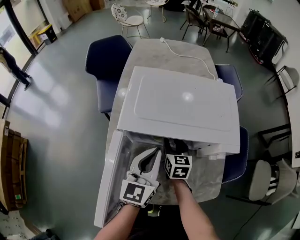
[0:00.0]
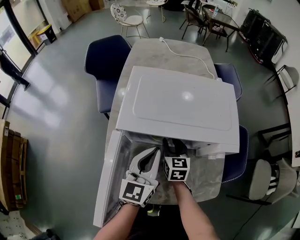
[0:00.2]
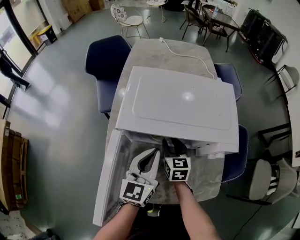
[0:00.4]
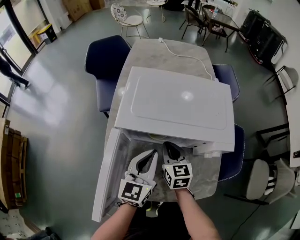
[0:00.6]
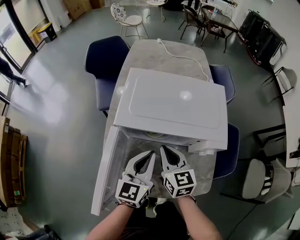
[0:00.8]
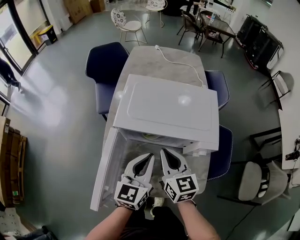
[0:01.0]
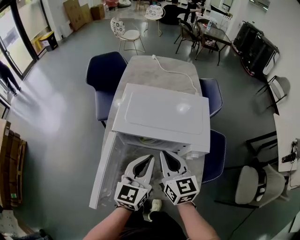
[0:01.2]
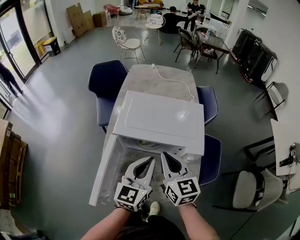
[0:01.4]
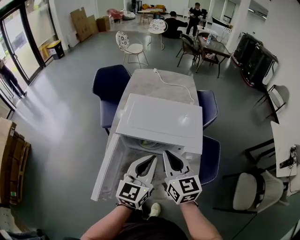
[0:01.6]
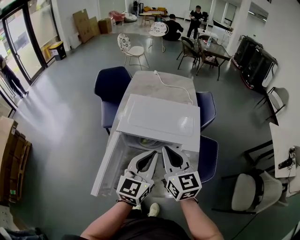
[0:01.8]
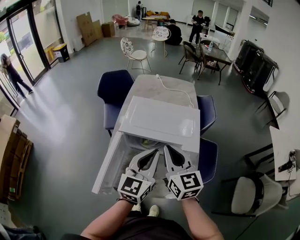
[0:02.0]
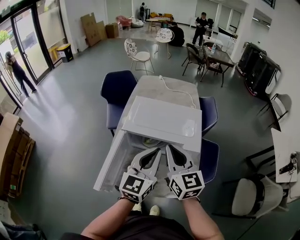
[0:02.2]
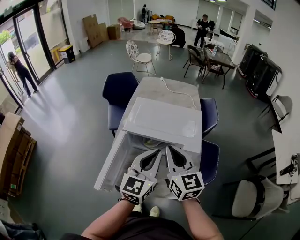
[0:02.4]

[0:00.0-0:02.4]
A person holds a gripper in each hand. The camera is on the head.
0:00.0 to 0:01.2: The left gripper shifts about 10 cm upward.
0:01.2 to 0:02.4: The left gripper heads upward, covering some 10 cm.

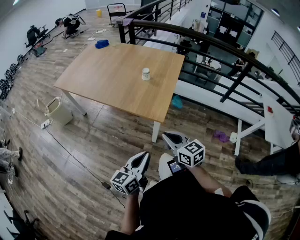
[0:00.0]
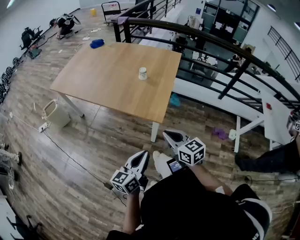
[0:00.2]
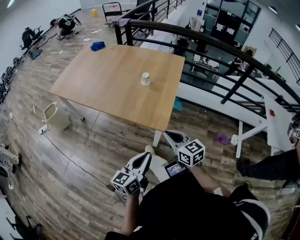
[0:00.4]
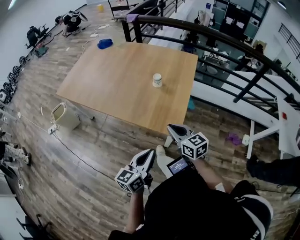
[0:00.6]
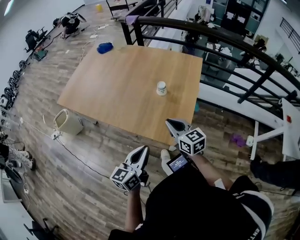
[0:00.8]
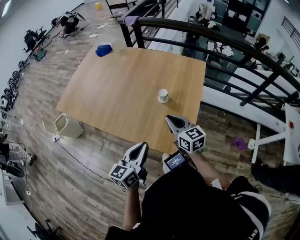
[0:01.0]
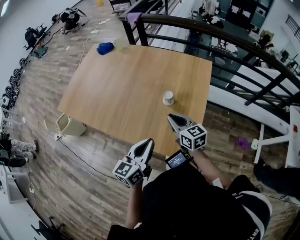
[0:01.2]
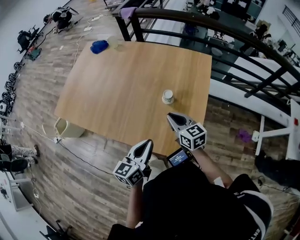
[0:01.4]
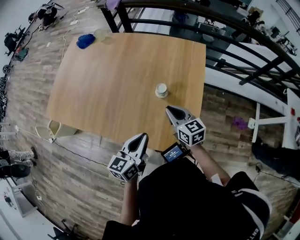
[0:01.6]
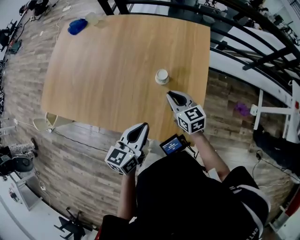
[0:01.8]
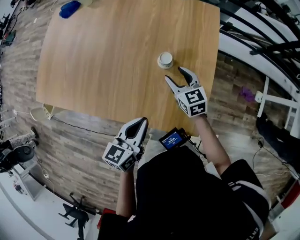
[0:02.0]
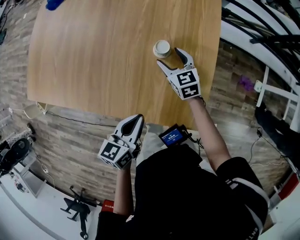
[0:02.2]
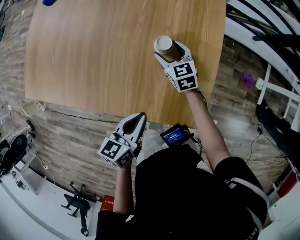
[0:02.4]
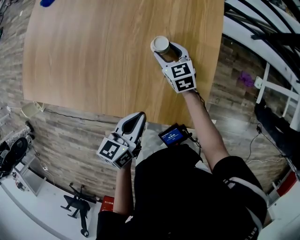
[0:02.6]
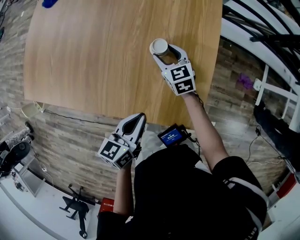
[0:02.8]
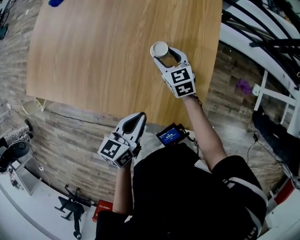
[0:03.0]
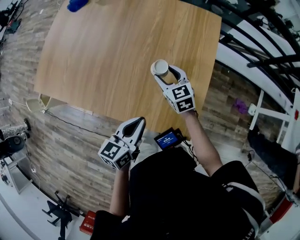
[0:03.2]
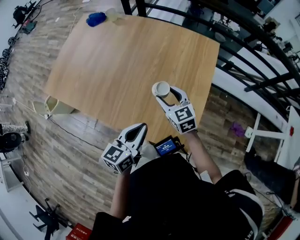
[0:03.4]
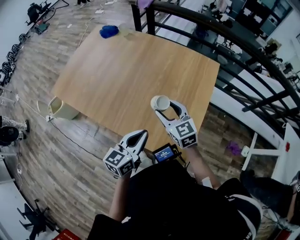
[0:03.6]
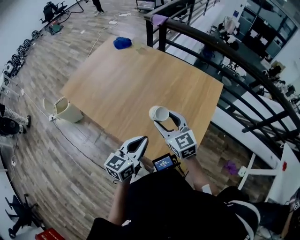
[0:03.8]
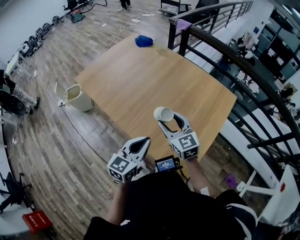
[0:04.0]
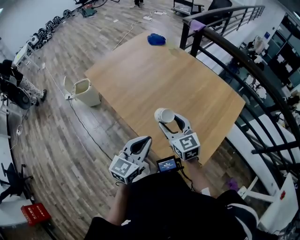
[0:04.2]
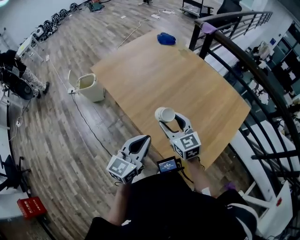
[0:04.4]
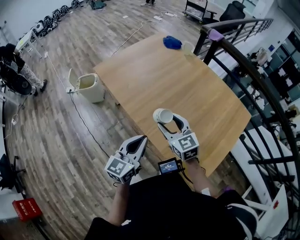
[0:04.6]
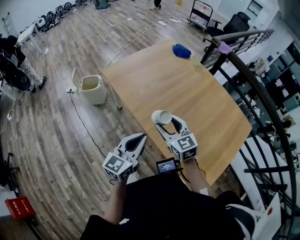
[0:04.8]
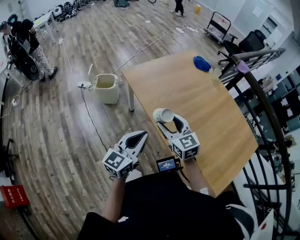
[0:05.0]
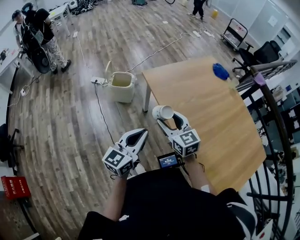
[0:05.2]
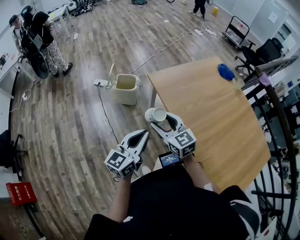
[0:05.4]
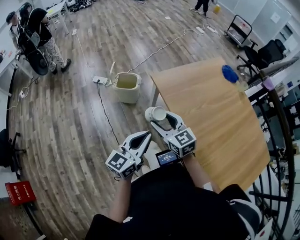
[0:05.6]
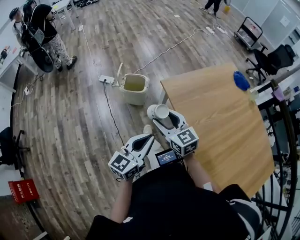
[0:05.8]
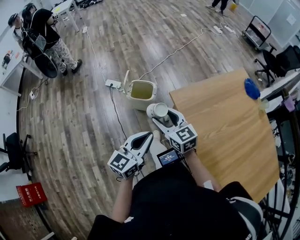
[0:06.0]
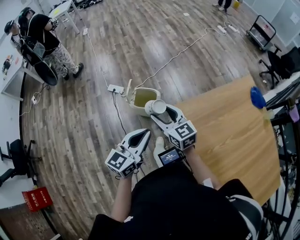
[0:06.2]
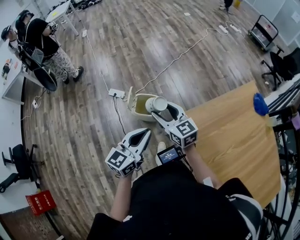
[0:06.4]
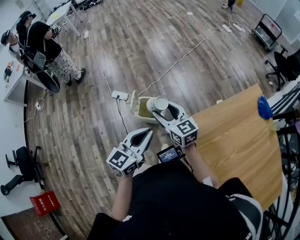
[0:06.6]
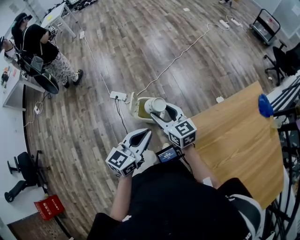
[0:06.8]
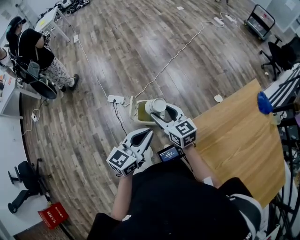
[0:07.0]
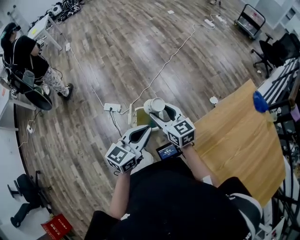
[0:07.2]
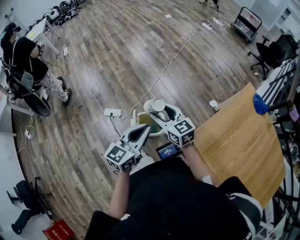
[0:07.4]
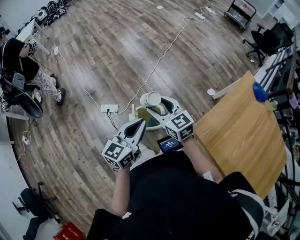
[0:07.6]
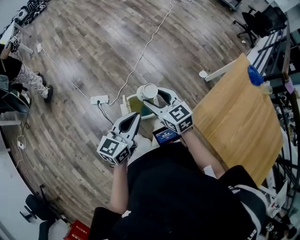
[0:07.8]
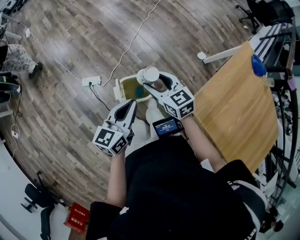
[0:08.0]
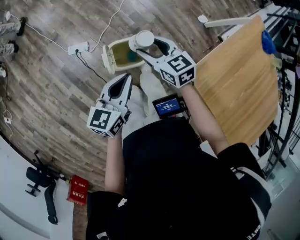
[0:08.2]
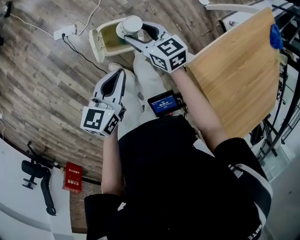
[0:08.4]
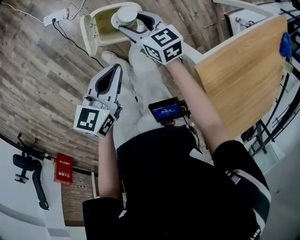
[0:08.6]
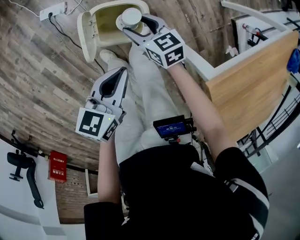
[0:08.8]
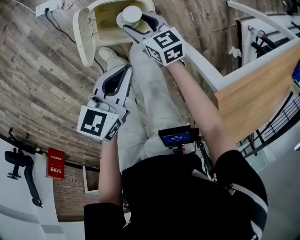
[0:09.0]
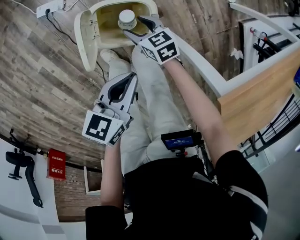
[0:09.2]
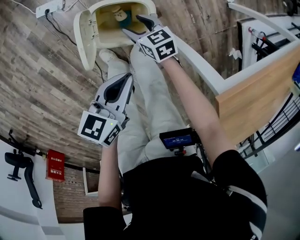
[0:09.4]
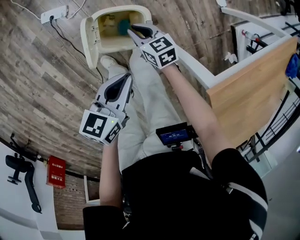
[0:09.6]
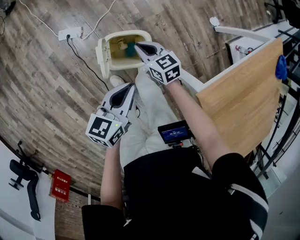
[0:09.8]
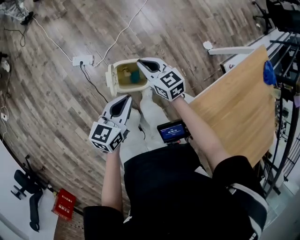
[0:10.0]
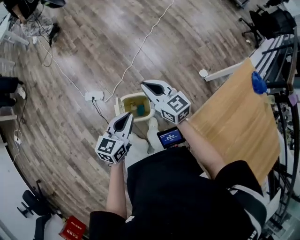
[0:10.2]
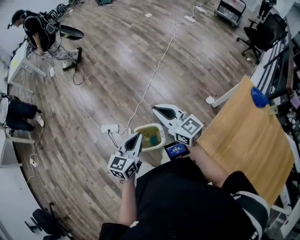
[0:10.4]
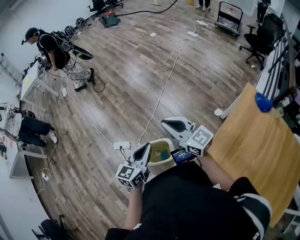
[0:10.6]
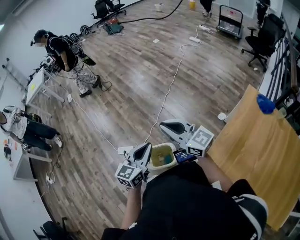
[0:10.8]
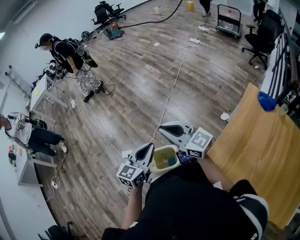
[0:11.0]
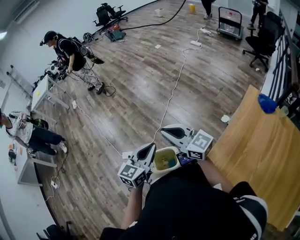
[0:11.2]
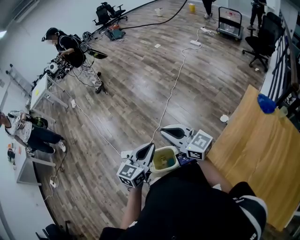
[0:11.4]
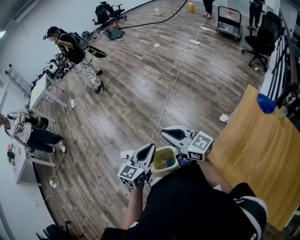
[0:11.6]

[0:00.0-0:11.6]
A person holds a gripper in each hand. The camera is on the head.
0:00.0 to 0:01.4: The two grippers travel together, forward, roughly 40 cm.
0:01.4 to 0:02.8: The right gripper is displaced downward and forward by approximately 25 cm, turns by roughly 20 degrees, and opens; the left gripper goes roughly 10 cm downward, and changes its angle by roughly 20 degrees.
0:02.8 to 0:04.4: The left gripper moves upward, approximately 15 cm, and swivels some 50 degrees. Meanwhile the right gripper changes place by about 35 cm, and turns by some 40 degrees.
0:04.4 to 0:05.8: Both grippers are carried to the left and forward, roughly 60 cm. The right gripper swivels roughly 20 degrees.
0:05.8 to 0:07.2: Both grippers are carried forward, roughly 40 cm.
0:07.2 to 0:08.8: The two grippers go some 35 cm downward. The right gripper swivels about 30 degrees. Meanwhile the left gripper turns by some 40 degrees.
0:08.8 to 0:10.2: The left gripper is displaced upward by approximately 15 cm, and changes its angle by roughly 20 degrees. Meanwhile the right gripper moves upward, roughly 30 cm, turns by approximately 30 degrees, and closes.
0:10.2 to 0:11.6: Both grippers move upward and to the right, approximately 15 cm. The right gripper changes its angle by roughly 20 degrees.

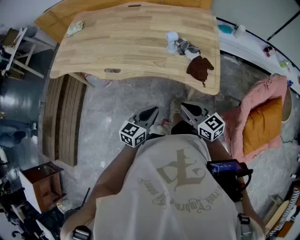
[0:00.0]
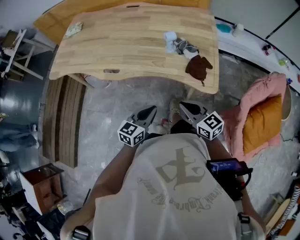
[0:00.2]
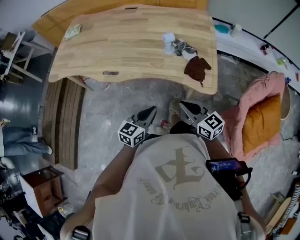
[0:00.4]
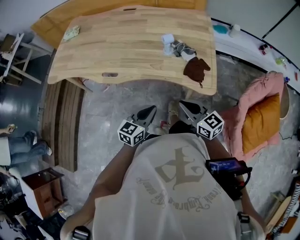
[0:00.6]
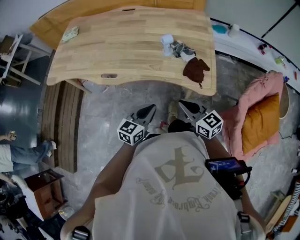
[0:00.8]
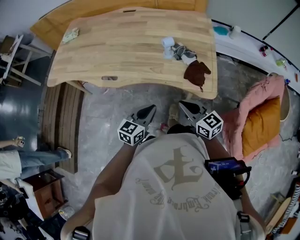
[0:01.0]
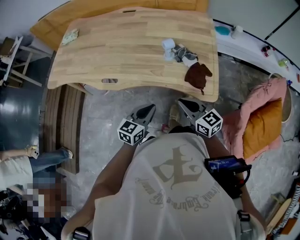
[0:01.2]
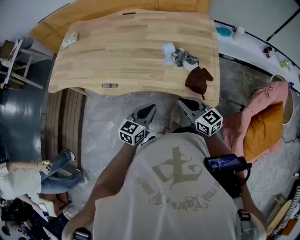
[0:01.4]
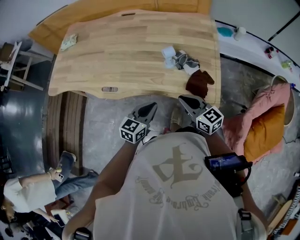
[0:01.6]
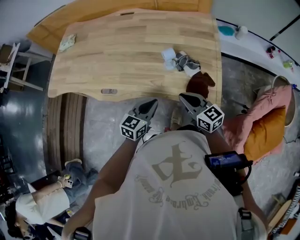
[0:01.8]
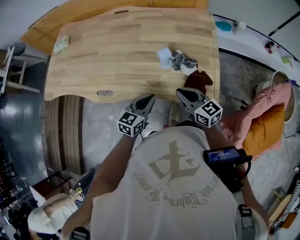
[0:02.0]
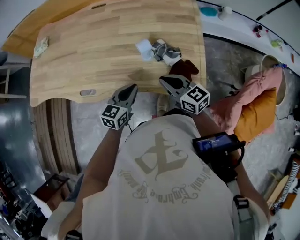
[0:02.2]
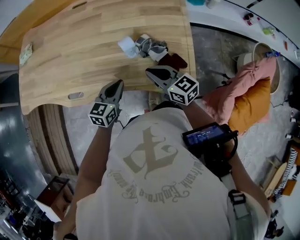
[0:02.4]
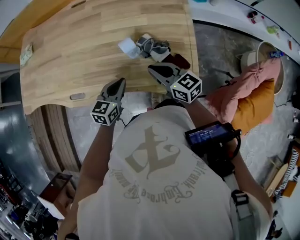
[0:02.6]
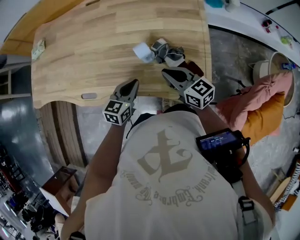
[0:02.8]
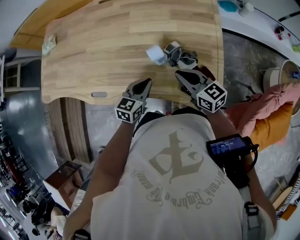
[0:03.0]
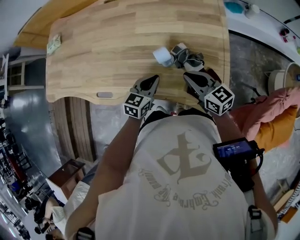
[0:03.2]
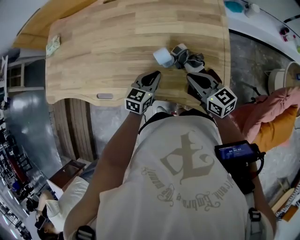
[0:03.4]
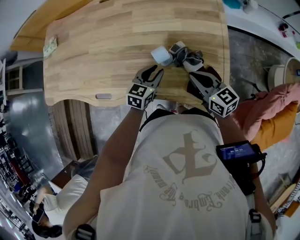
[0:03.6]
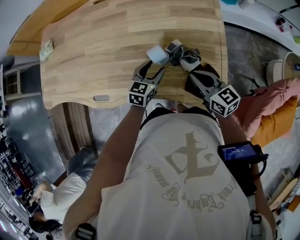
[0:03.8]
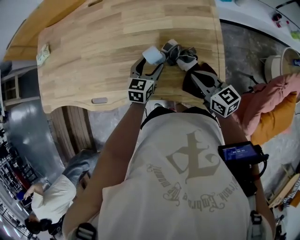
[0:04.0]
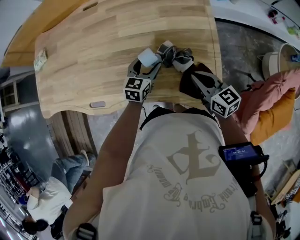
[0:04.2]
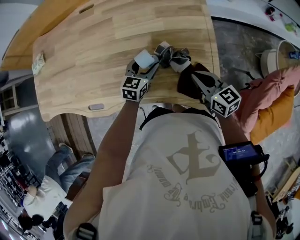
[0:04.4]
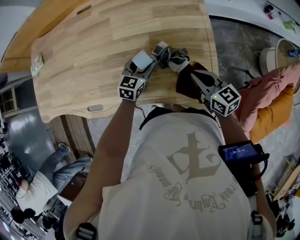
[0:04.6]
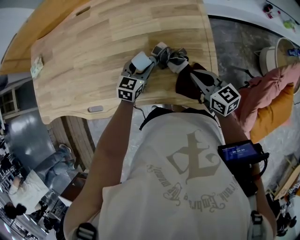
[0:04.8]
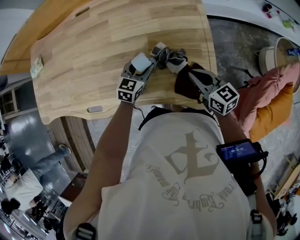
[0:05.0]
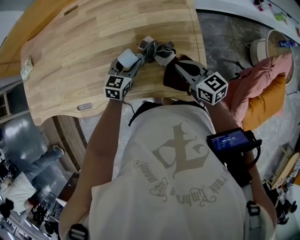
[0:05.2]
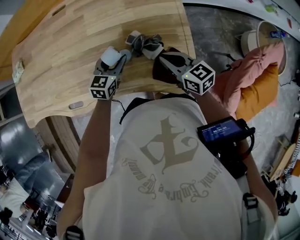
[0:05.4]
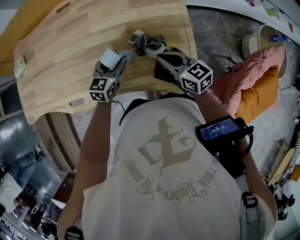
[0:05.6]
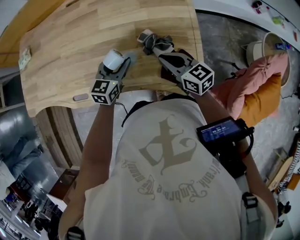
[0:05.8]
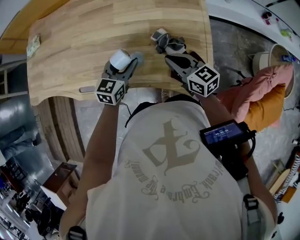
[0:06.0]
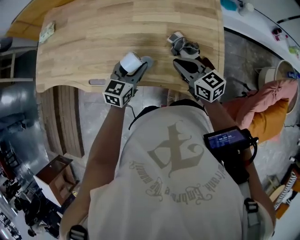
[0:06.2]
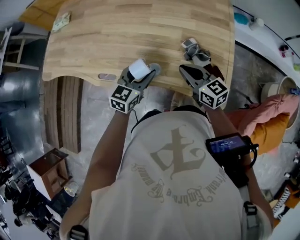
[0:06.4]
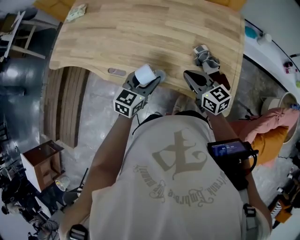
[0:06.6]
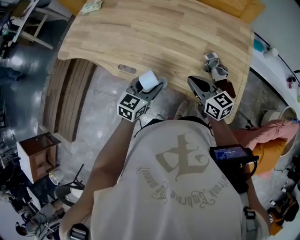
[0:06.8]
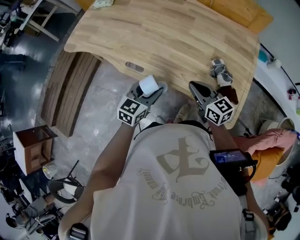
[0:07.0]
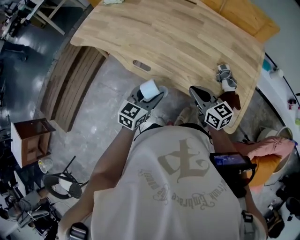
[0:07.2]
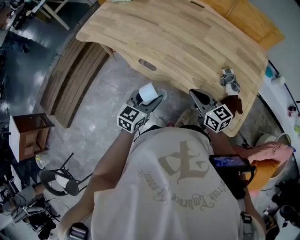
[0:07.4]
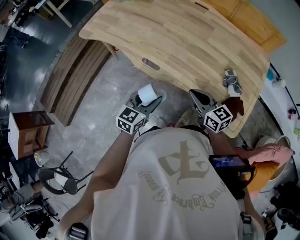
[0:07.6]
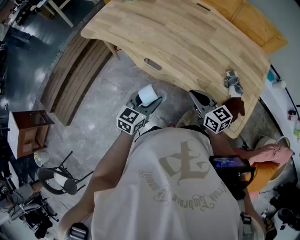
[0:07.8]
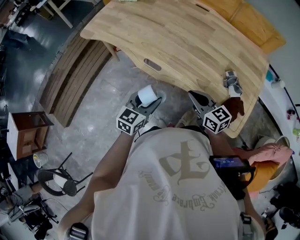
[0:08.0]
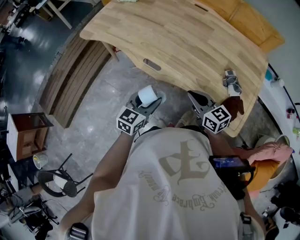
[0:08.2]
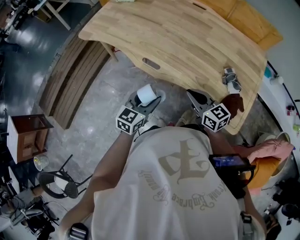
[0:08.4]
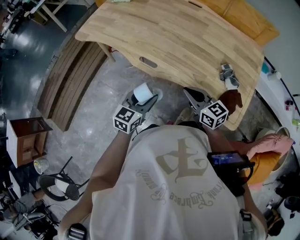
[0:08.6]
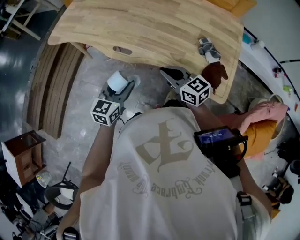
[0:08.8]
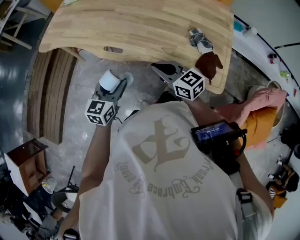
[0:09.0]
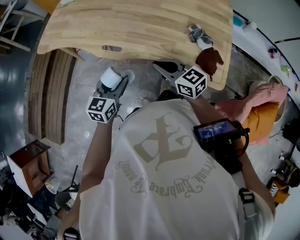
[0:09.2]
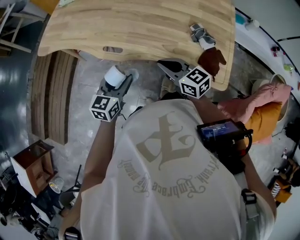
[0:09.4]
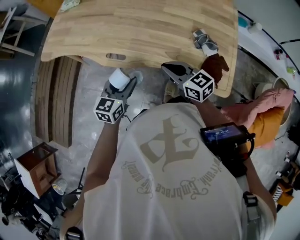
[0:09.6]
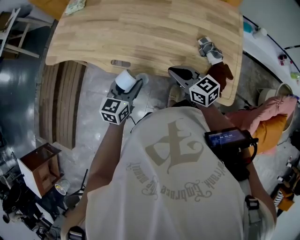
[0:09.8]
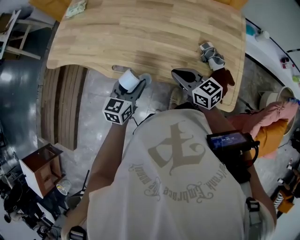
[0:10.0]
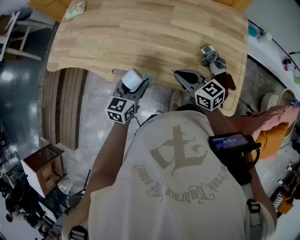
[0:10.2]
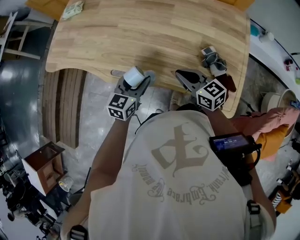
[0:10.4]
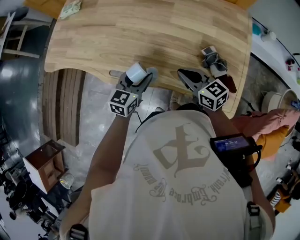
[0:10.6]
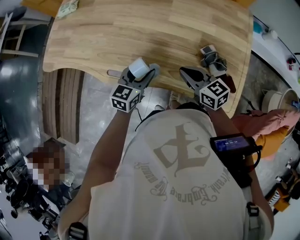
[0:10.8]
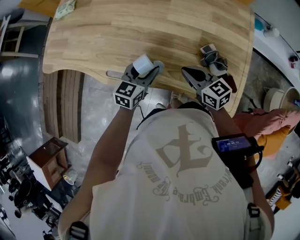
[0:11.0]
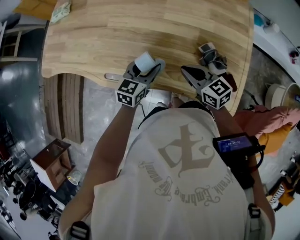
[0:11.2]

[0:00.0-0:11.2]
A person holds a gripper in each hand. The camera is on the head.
0:00.0 to 0:01.6: The grippers both shift forward by about 15 cm.
0:01.6 to 0:03.2: Both grippers travel together forward, approximately 15 cm.
0:03.2 to 0:04.8: The right gripper travels to the right by approximately 10 cm. Meanwhile the left gripper is displaced forward by about 10 cm, and opens its fingers.
0:04.8 to 0:06.4: The right gripper heads to the left, covering approximately 15 cm; the left gripper heads backward, to the left and upward, covering roughly 20 cm.
0:06.4 to 0:08.0: The right gripper is displaced to the left by roughly 20 cm. The left gripper goes some 25 cm to the left and backward, and turns by some 20 degrees.
0:08.0 to 0:09.6: The grippers stay close to where they were, moving slightly.
0:09.6 to 0:11.2: The left gripper goes roughly 25 cm forward and to the right, while the right gripper shifts roughly 15 cm forward, to the right and downward.
